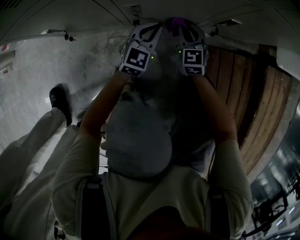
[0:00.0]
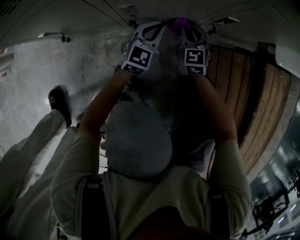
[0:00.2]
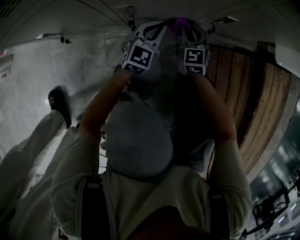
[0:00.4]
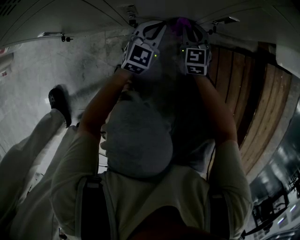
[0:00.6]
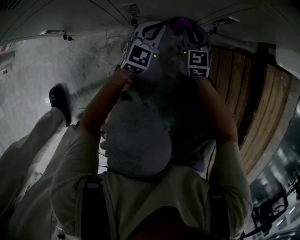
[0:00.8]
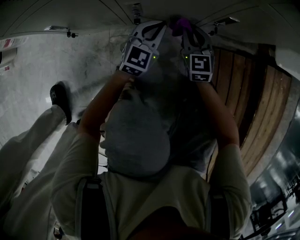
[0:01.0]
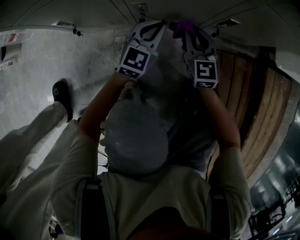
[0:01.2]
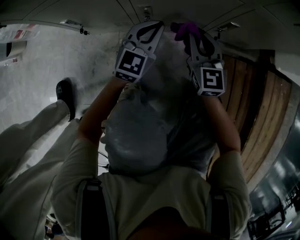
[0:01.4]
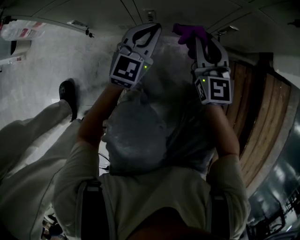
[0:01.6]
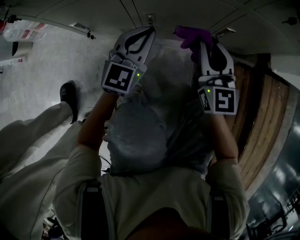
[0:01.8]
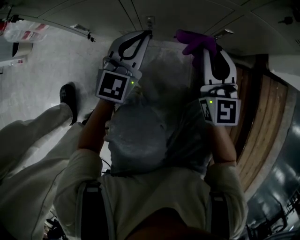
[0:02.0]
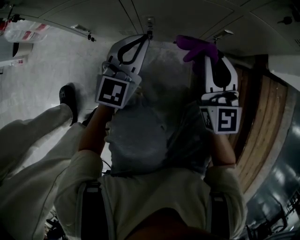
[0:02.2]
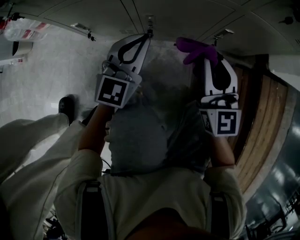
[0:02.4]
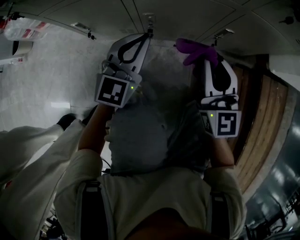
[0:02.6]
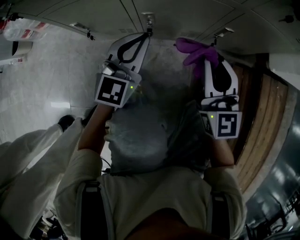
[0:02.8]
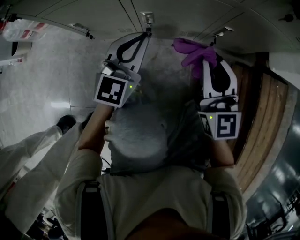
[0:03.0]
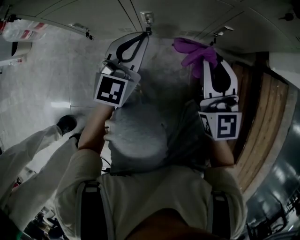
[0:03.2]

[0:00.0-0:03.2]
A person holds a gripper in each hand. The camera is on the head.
0:00.0 to 0:01.6: Both grippers move upward, some 15 cm. The right gripper turns by some 20 degrees.
0:01.6 to 0:03.2: The right gripper moves upward and backward, roughly 10 cm, while the left gripper goes some 5 cm upward.

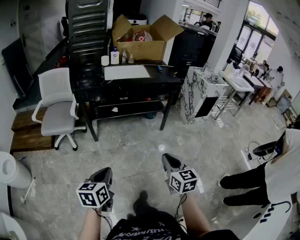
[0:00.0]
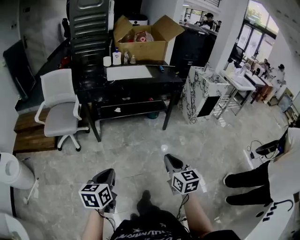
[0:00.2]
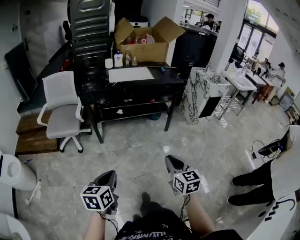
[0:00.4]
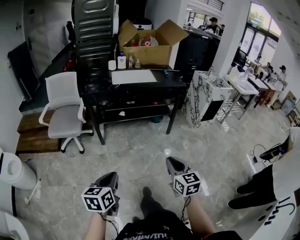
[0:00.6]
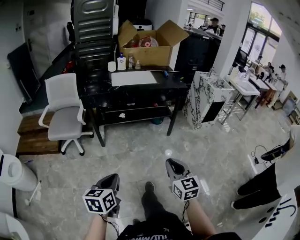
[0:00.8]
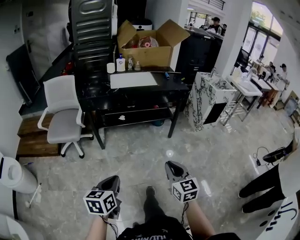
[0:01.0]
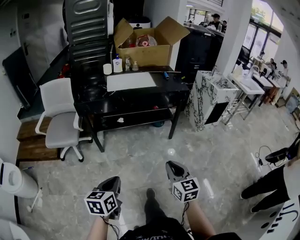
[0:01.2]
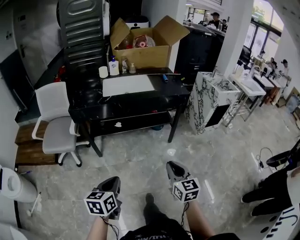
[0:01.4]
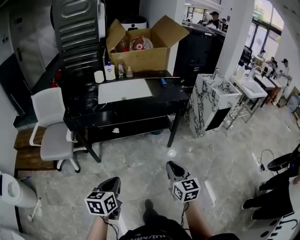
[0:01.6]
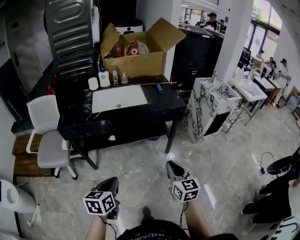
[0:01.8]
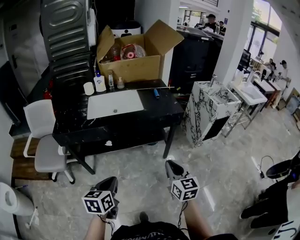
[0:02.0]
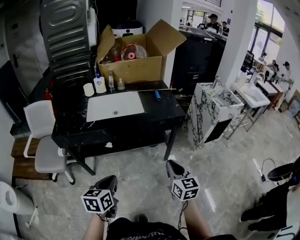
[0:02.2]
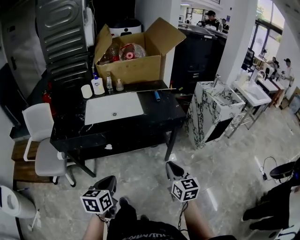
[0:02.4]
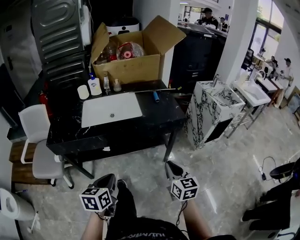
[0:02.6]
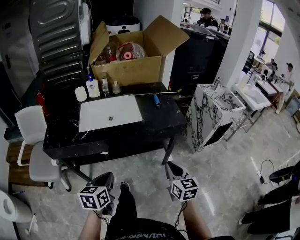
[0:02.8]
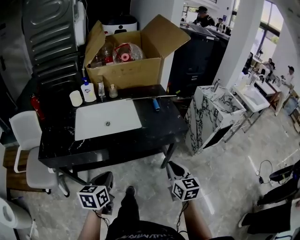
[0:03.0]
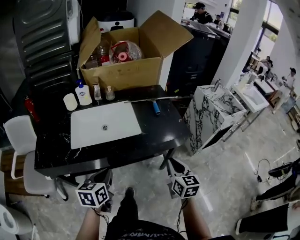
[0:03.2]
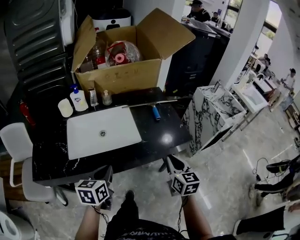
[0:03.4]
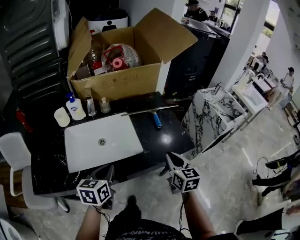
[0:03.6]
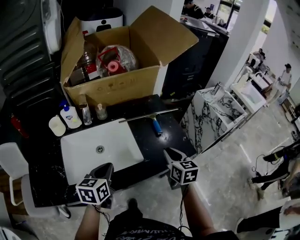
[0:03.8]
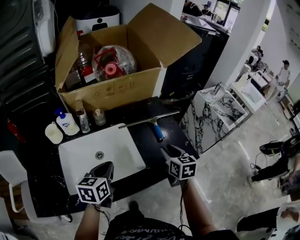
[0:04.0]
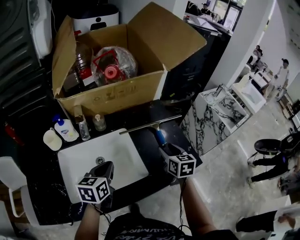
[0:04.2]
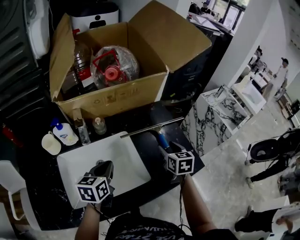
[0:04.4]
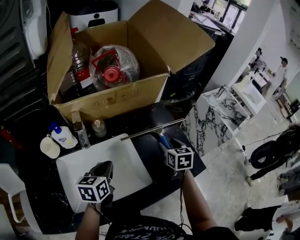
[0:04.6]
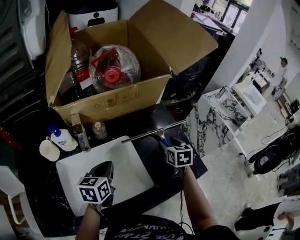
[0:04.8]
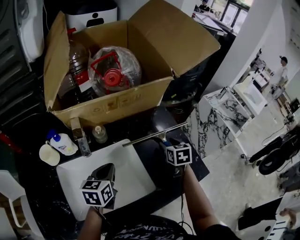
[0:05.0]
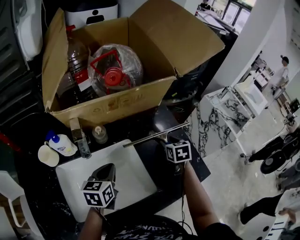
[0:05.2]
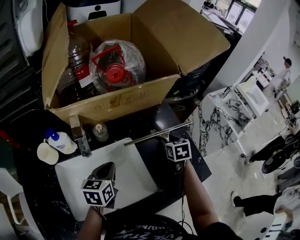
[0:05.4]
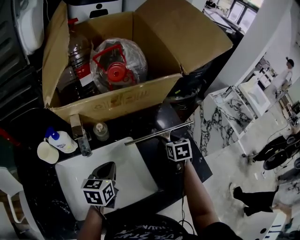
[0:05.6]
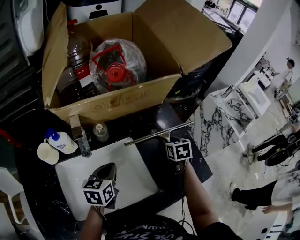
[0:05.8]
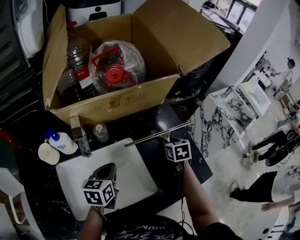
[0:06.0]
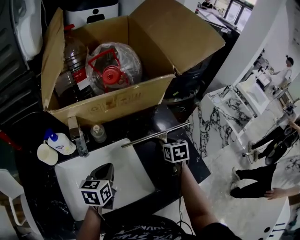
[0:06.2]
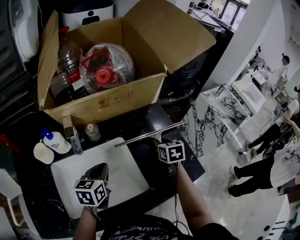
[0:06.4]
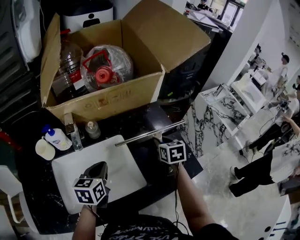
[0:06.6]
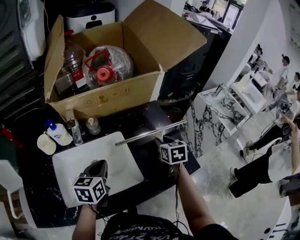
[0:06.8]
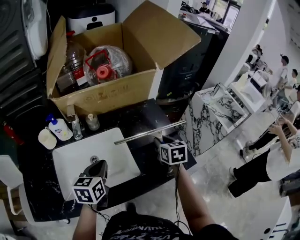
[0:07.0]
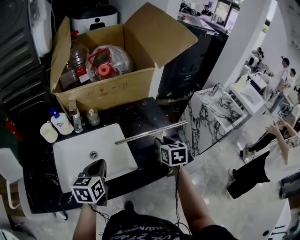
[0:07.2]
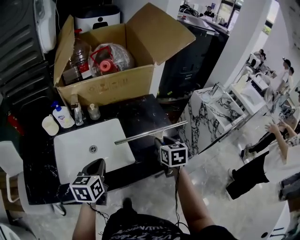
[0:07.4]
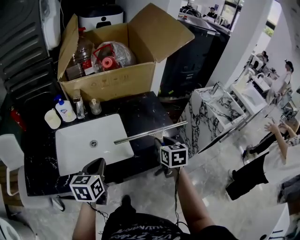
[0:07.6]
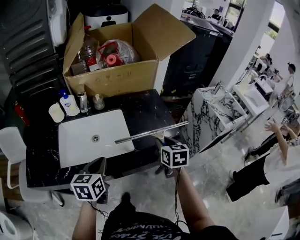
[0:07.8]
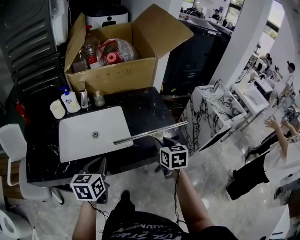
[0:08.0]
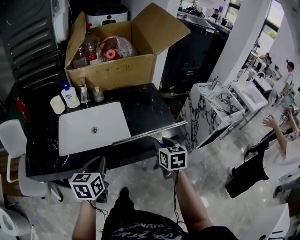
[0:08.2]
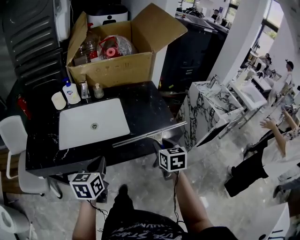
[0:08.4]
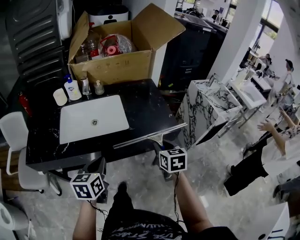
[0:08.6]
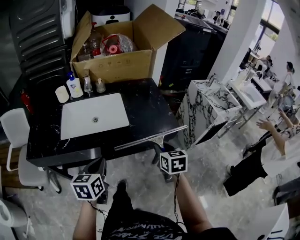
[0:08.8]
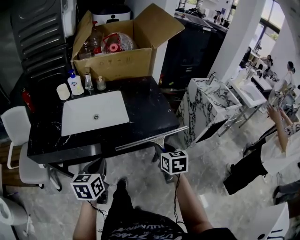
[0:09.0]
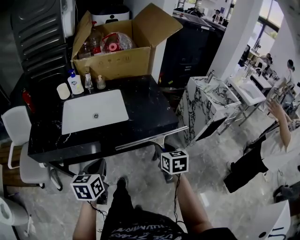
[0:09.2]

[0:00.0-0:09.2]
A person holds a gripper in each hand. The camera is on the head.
0:00.0 to 0:01.6: The two grippers go some 30 cm forward.
0:01.6 to 0:03.0: The grippers both shift forward by approximately 40 cm.
0:03.0 to 0:04.6: The pair of grippers is taken forward, about 50 cm. The right gripper swivels about 20 degrees, and opens its fingers.
0:04.6 to 0:06.2: The left gripper ends up approximately 5 cm from where it was. The right gripper is displaced forward and downward by some 10 cm.
0:06.2 to 0:07.6: The right gripper heads backward and upward, covering roughly 25 cm; the left gripper travels backward by about 25 cm.
0:07.6 to 0:09.2: The grippers both shift backward by approximately 25 cm.

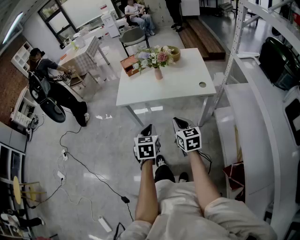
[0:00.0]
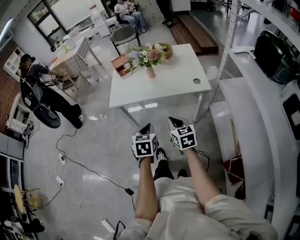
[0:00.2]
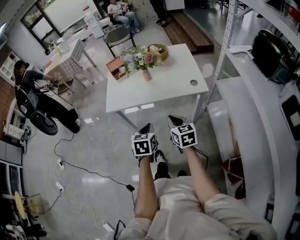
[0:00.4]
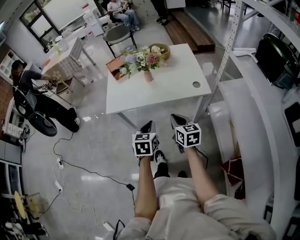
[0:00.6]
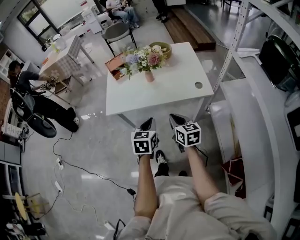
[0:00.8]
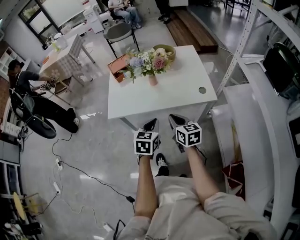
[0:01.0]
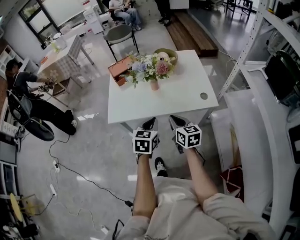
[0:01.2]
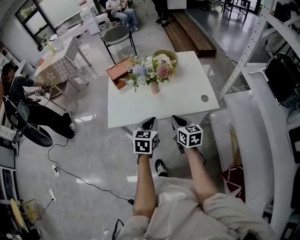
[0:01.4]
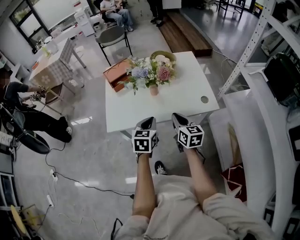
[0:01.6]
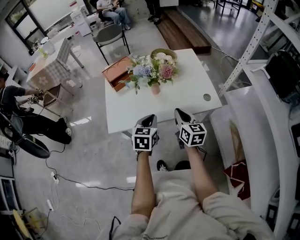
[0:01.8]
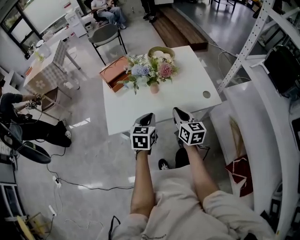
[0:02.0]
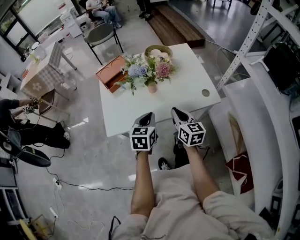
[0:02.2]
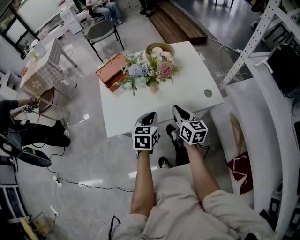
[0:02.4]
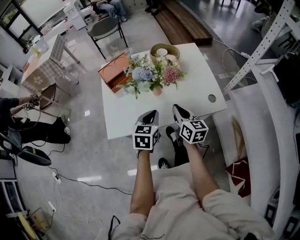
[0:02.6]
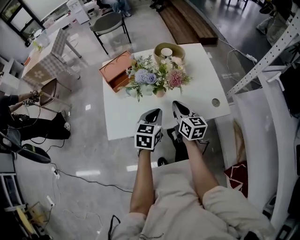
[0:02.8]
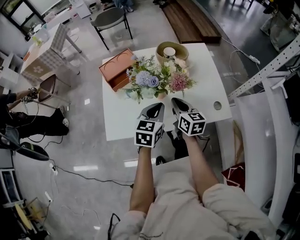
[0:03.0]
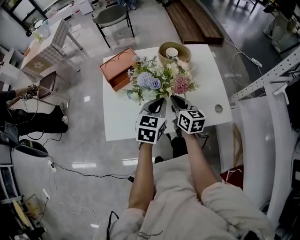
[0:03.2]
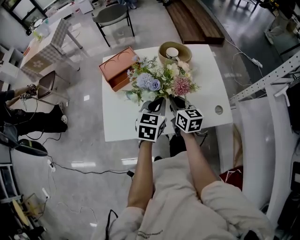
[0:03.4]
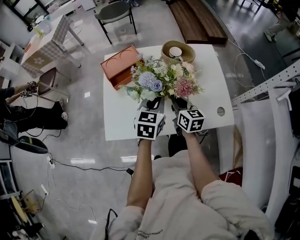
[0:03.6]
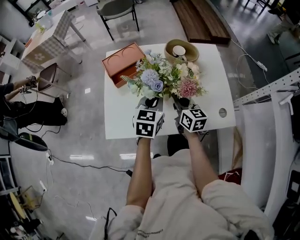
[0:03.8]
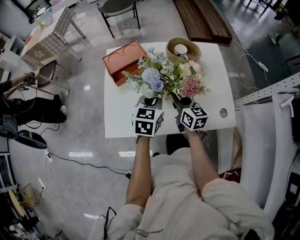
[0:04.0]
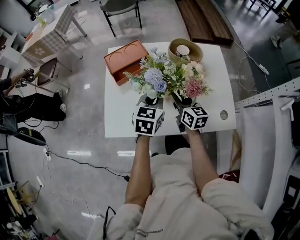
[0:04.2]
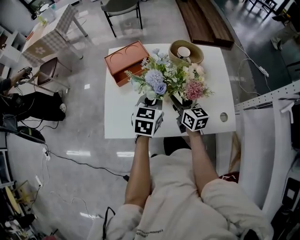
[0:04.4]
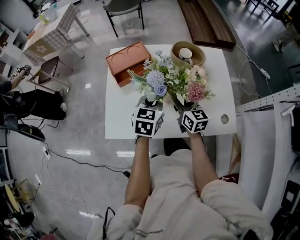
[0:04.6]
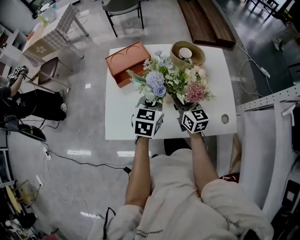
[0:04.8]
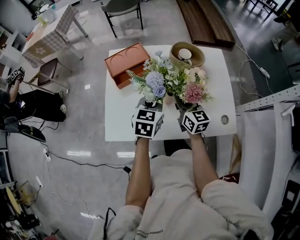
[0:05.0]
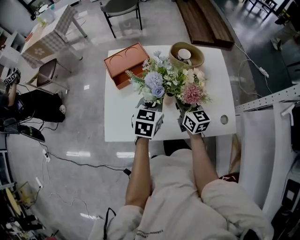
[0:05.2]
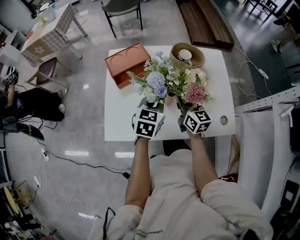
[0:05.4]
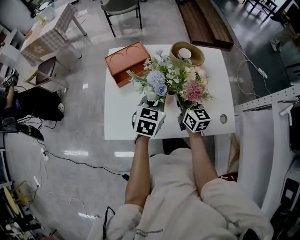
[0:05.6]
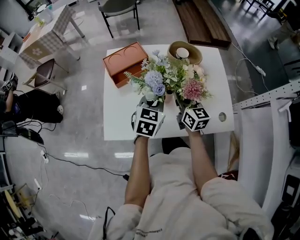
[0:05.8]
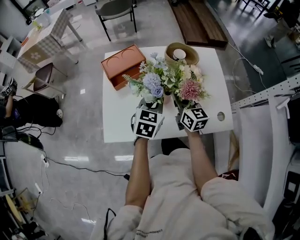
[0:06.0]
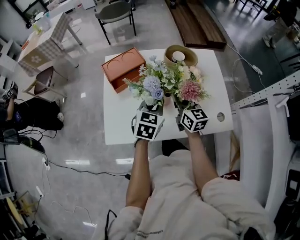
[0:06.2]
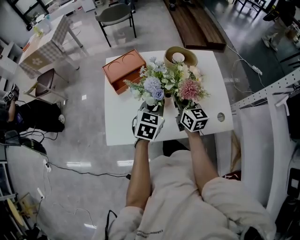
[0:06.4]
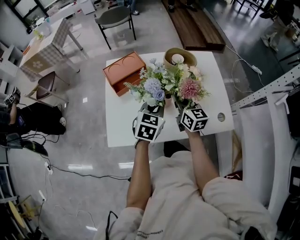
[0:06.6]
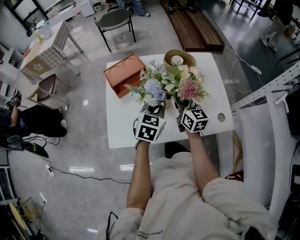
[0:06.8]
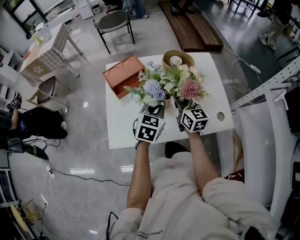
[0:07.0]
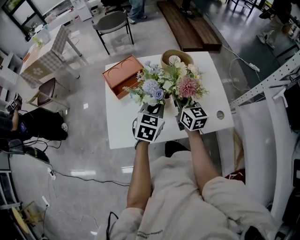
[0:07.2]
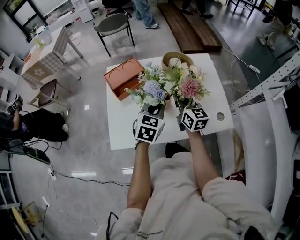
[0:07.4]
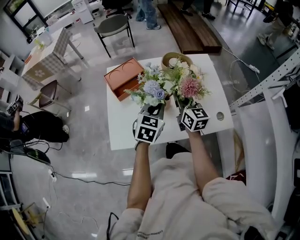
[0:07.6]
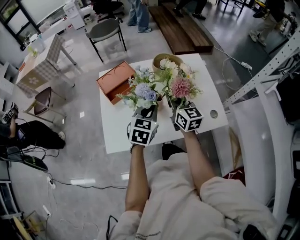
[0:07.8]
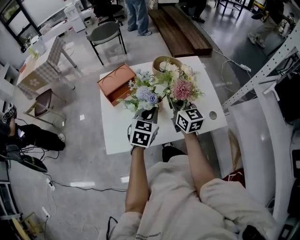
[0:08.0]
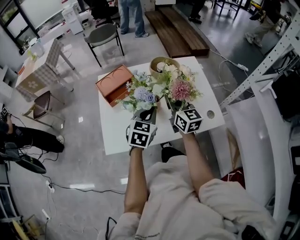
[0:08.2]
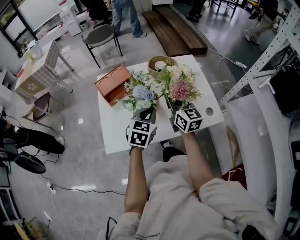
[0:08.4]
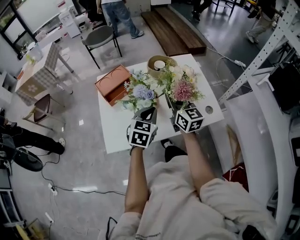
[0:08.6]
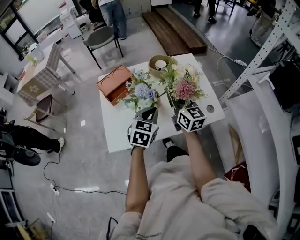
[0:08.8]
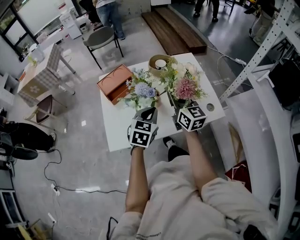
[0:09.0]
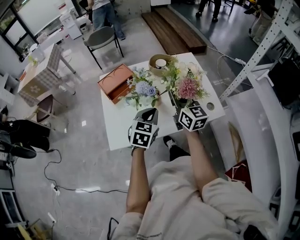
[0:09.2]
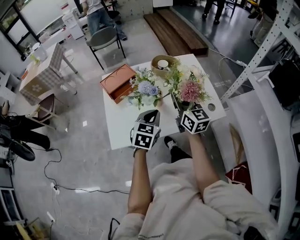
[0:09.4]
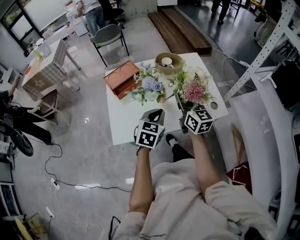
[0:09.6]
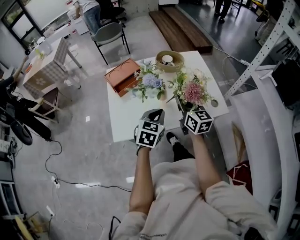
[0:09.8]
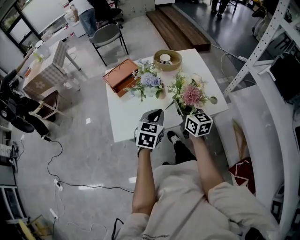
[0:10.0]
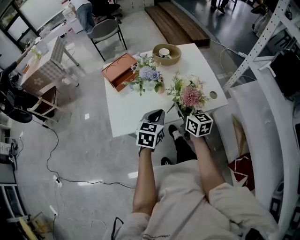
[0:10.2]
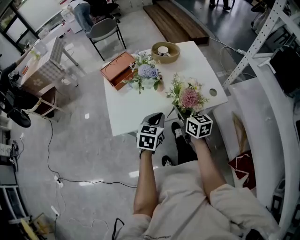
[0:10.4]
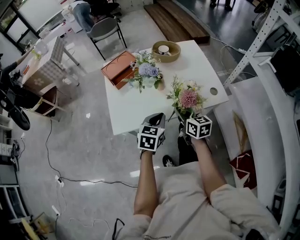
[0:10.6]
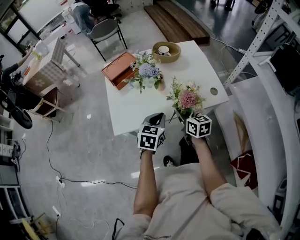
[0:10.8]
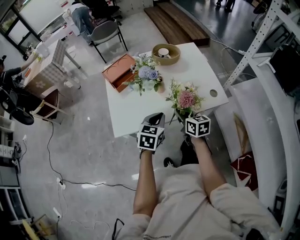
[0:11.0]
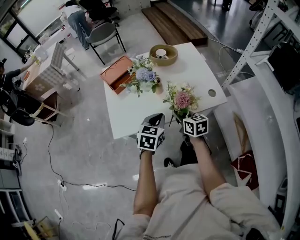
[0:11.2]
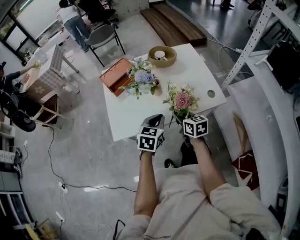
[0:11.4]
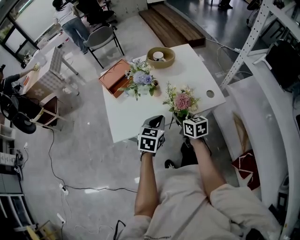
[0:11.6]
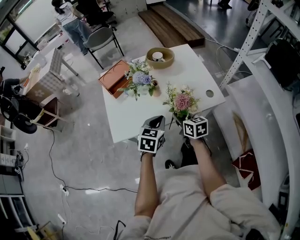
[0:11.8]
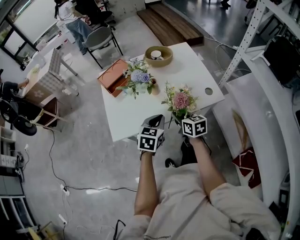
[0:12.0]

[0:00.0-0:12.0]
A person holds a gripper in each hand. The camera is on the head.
0:00.0 to 0:01.6: The two grippers go some 25 cm forward.
0:01.6 to 0:03.0: The two grippers go about 15 cm forward.
0:03.0 to 0:04.4: Both grippers move forward, roughly 5 cm. The right gripper opens up.
0:04.4 to 0:06.0: The right gripper closes up.
0:06.0 to 0:07.6: The right gripper ends up roughly 5 cm from where it was.
0:07.6 to 0:09.0: The right gripper goes about 10 cm upward and backward; the left gripper goes some 5 cm backward.
0:09.0 to 0:10.4: The right gripper travels downward and backward by roughly 15 cm, and swivels about 20 degrees. Meanwhile the left gripper travels backward by about 10 cm.
0:10.4 to 0:12.0: The grippers move only a little.
